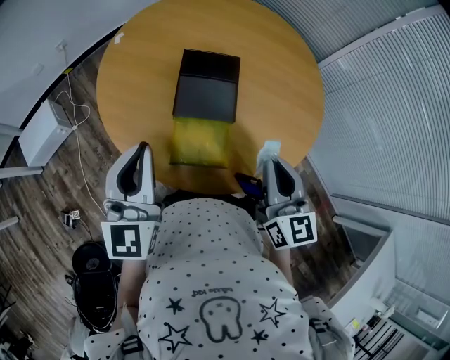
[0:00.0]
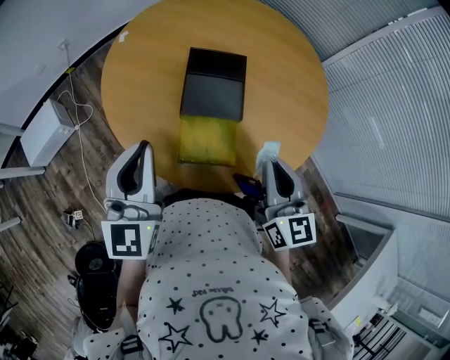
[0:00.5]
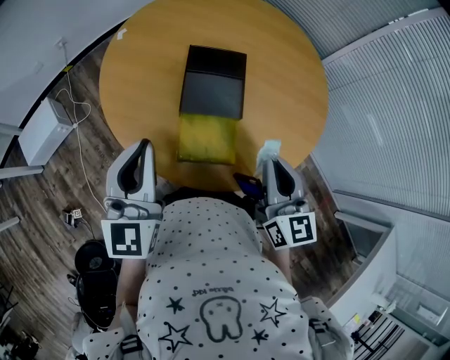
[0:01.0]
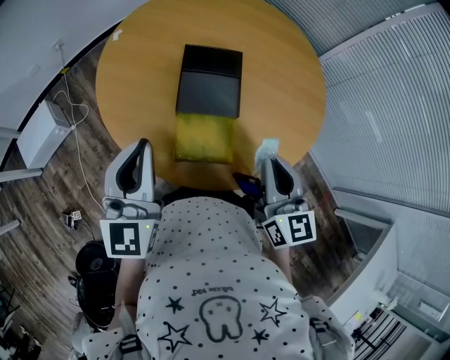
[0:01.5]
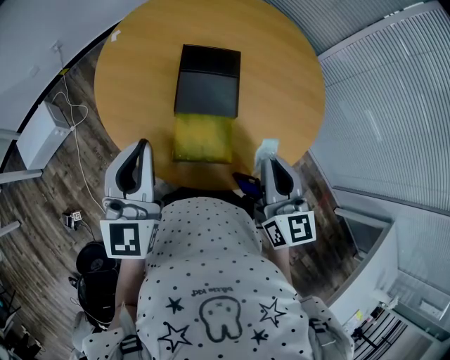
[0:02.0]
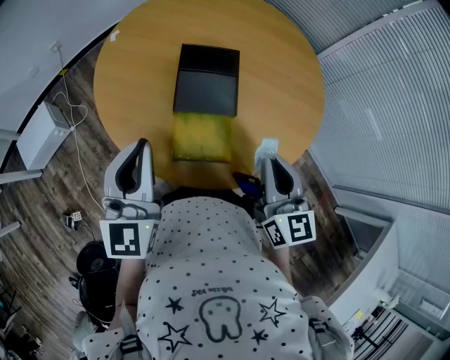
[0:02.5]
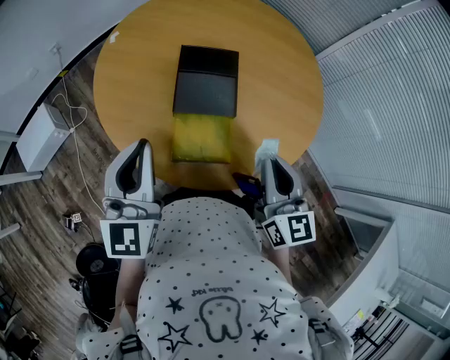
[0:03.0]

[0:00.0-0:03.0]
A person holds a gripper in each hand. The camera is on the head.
0:00.0 to 0:03.0: Both grippers stay about where they are.

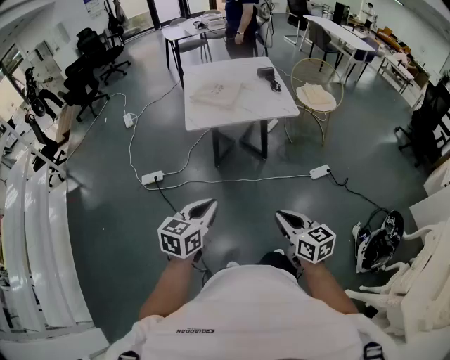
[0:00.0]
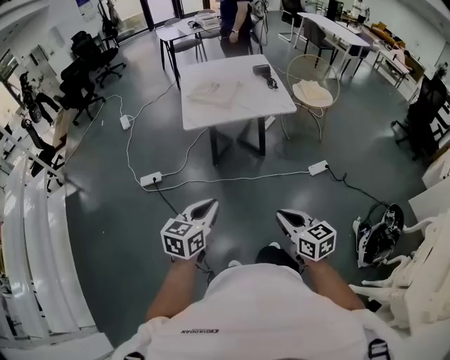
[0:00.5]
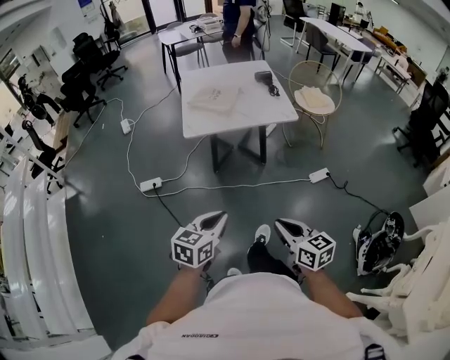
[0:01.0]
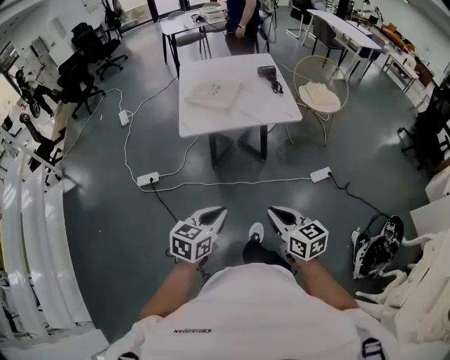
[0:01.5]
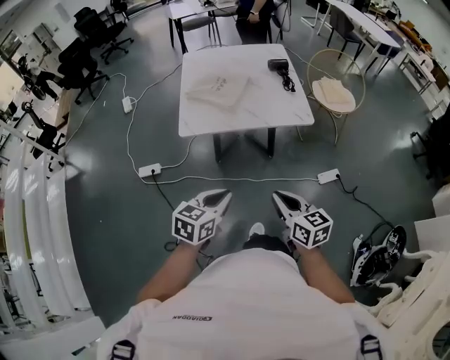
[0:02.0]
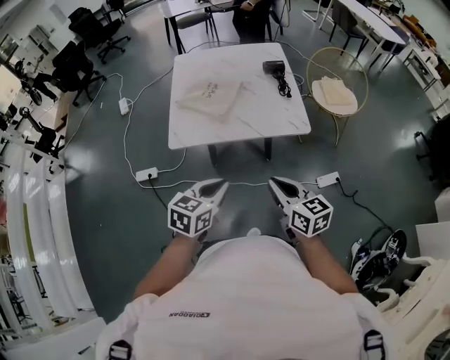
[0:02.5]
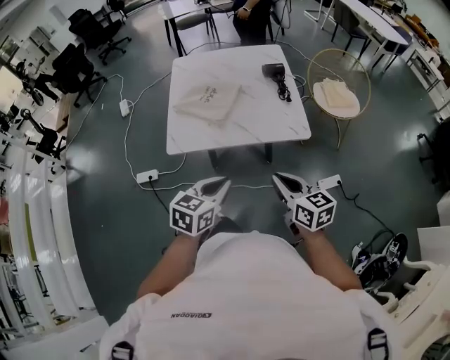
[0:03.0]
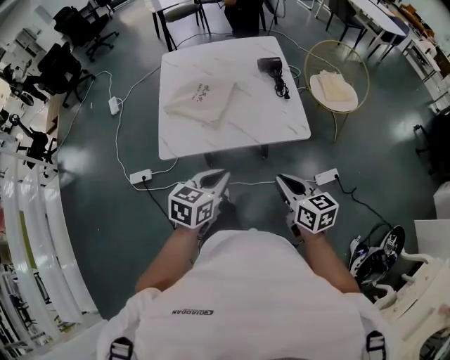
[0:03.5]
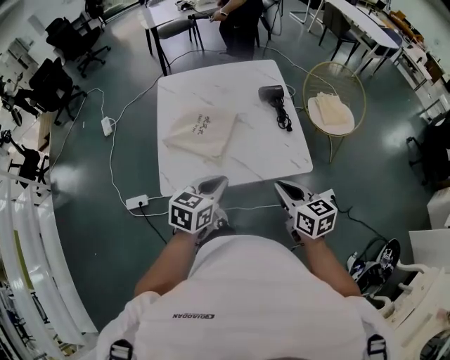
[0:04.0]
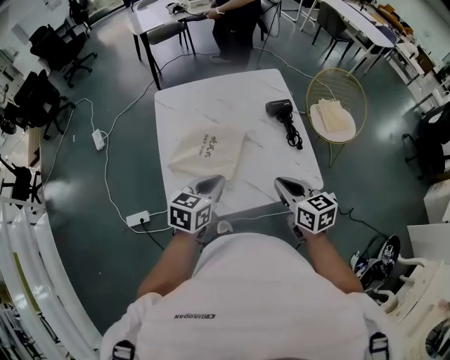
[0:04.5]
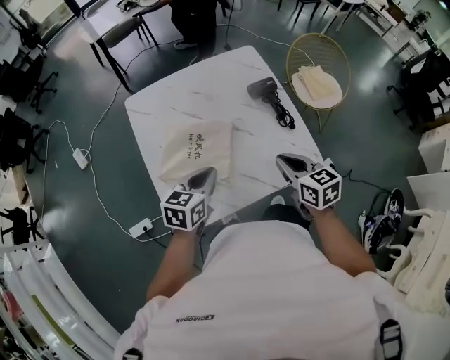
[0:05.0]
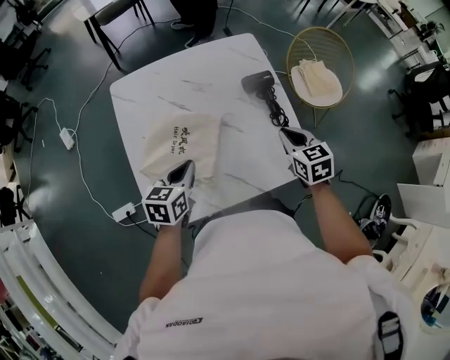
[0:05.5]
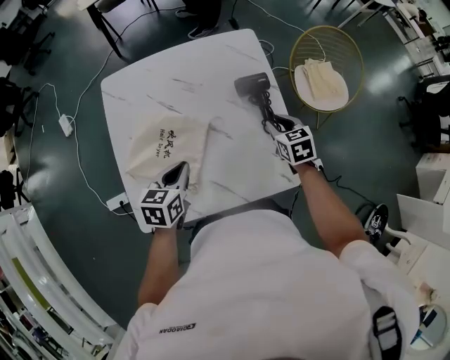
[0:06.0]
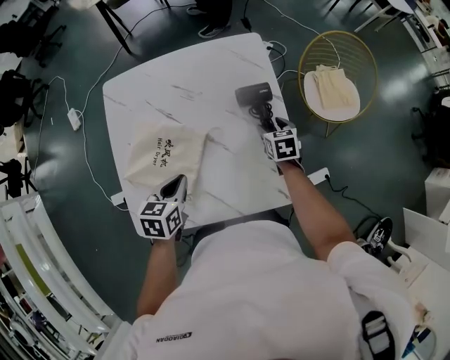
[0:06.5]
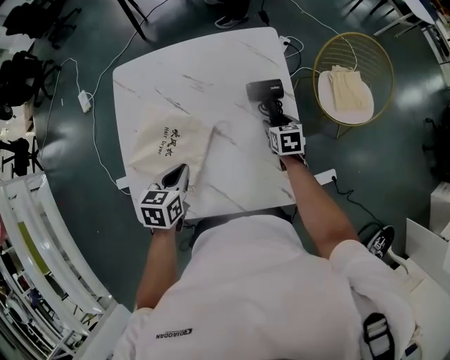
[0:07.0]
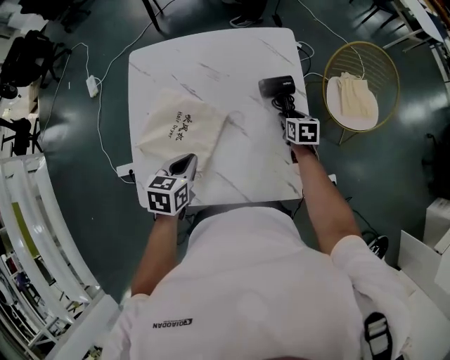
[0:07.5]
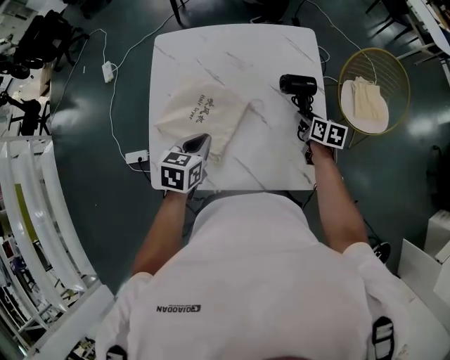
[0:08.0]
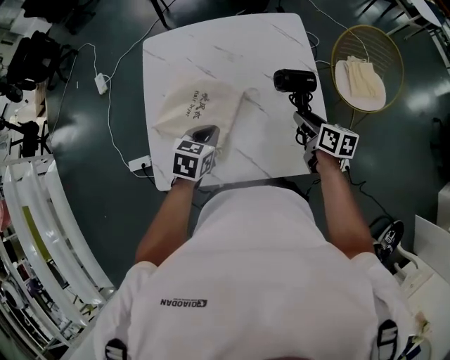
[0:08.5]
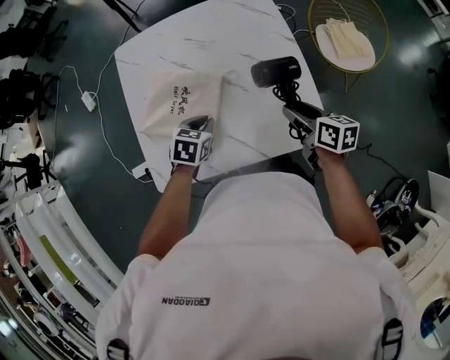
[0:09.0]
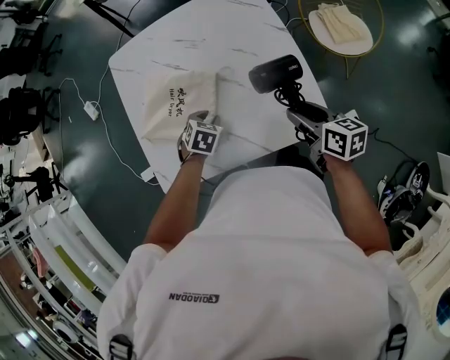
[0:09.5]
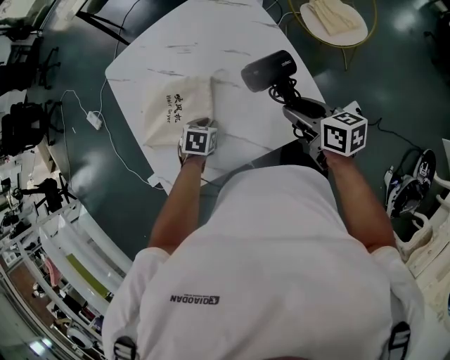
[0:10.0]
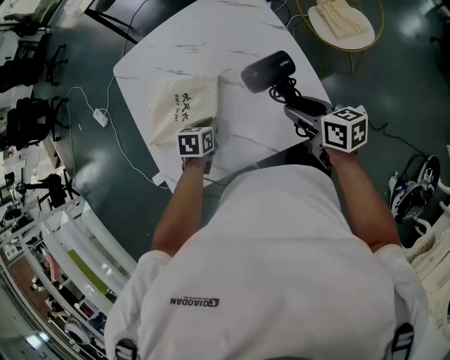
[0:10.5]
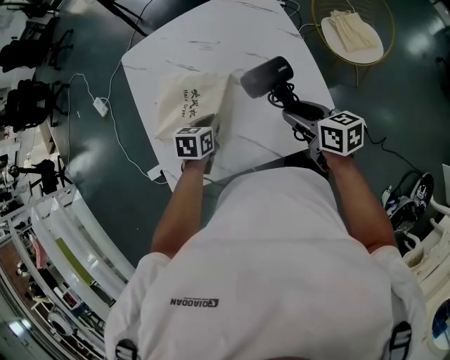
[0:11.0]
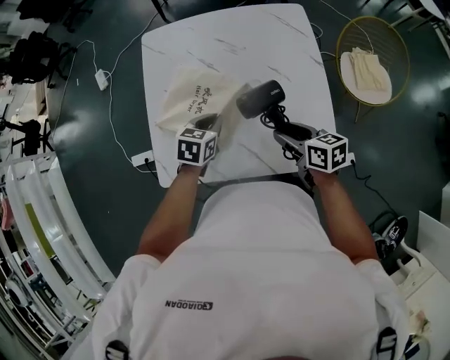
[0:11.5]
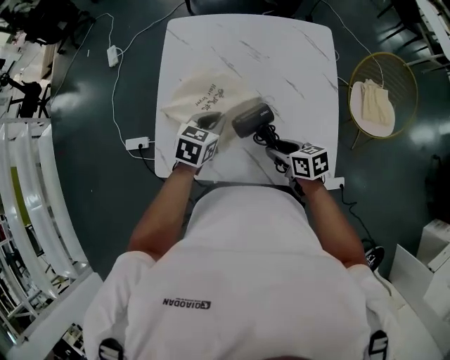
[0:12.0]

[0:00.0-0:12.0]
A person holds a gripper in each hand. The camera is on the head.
0:00.0 to 0:02.0: The two grippers go roughly 25 cm forward.
0:02.0 to 0:04.0: The two grippers go about 35 cm forward.
0:04.0 to 0:06.0: Both grippers travel together forward and downward, roughly 35 cm. The right gripper turns by some 30 degrees.
0:06.0 to 0:08.0: The right gripper is displaced downward by some 5 cm, and rotates about 30 degrees.
0:08.0 to 0:10.0: The right gripper goes some 20 cm backward and upward. The left gripper goes approximately 15 cm downward, and changes its angle by about 30 degrees.
0:10.0 to 0:12.0: The right gripper shifts by some 20 cm, and rotates about 40 degrees. Meanwhile the left gripper heads upward, covering some 10 cm, and rotates some 30 degrees.

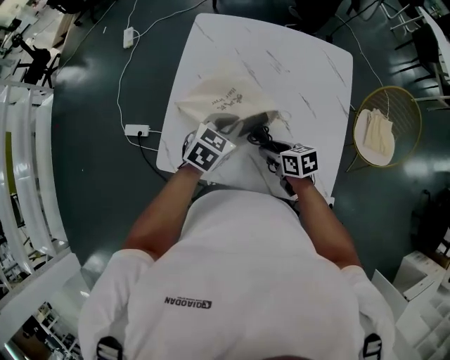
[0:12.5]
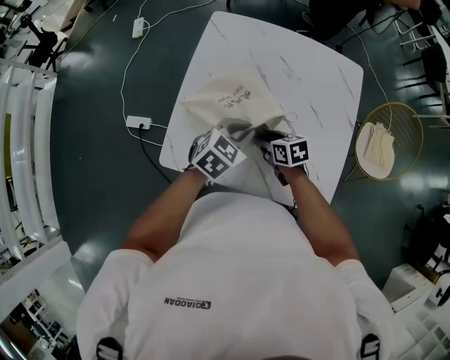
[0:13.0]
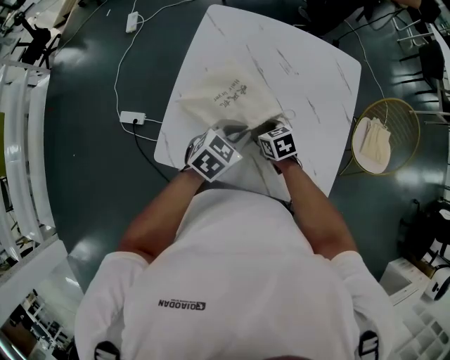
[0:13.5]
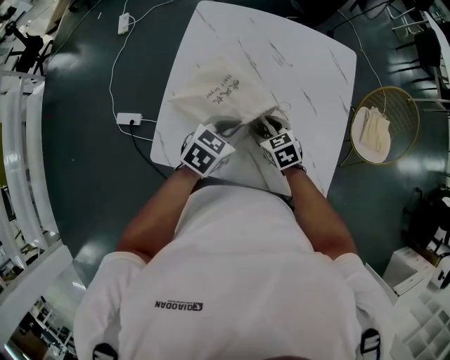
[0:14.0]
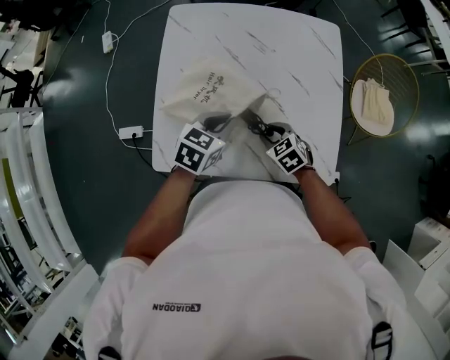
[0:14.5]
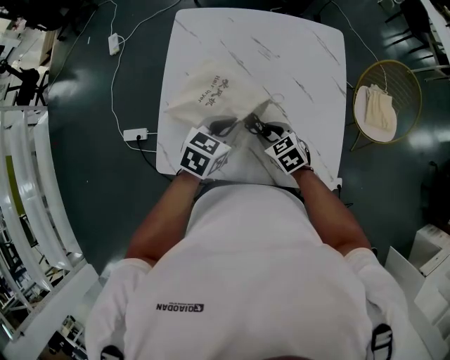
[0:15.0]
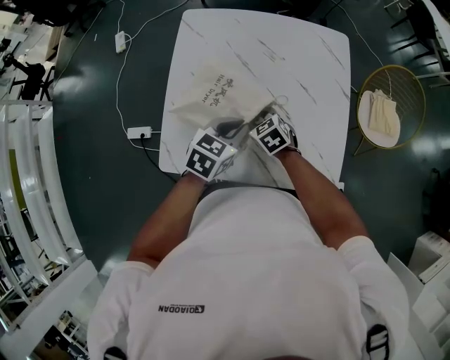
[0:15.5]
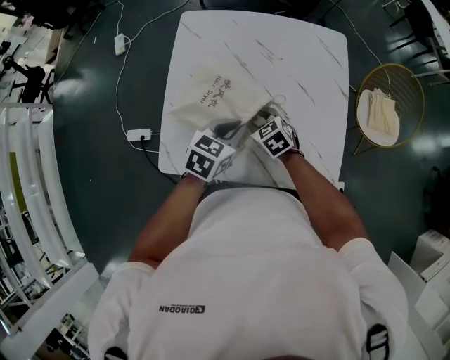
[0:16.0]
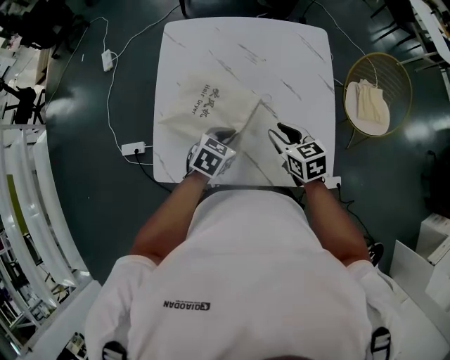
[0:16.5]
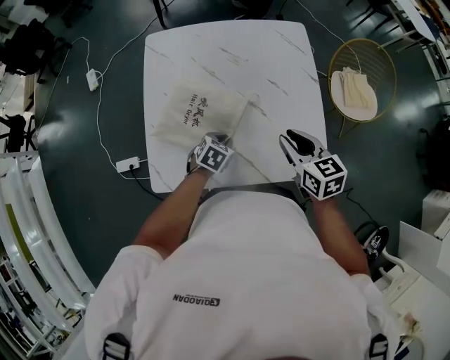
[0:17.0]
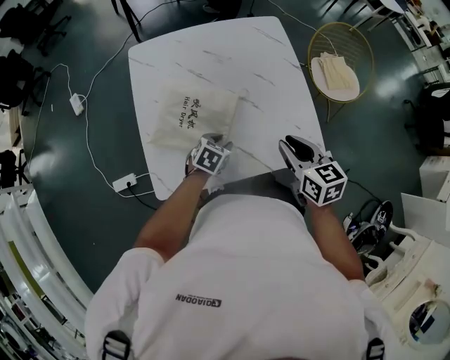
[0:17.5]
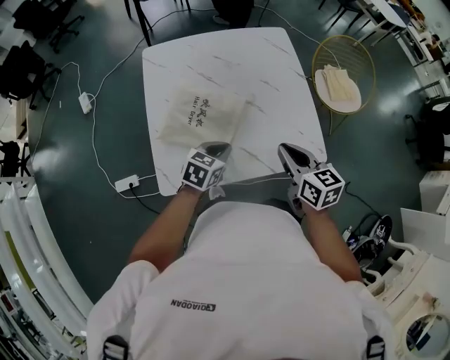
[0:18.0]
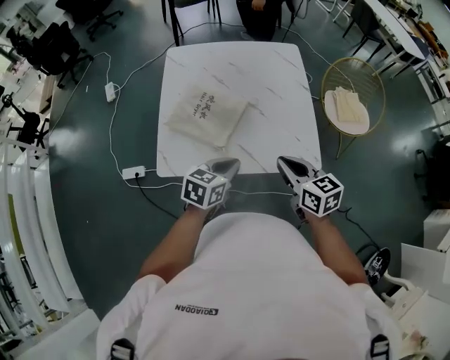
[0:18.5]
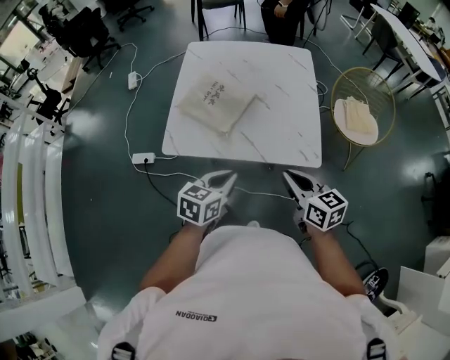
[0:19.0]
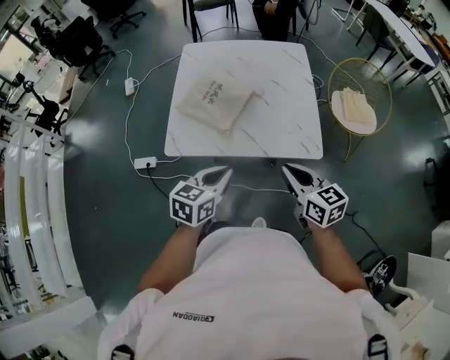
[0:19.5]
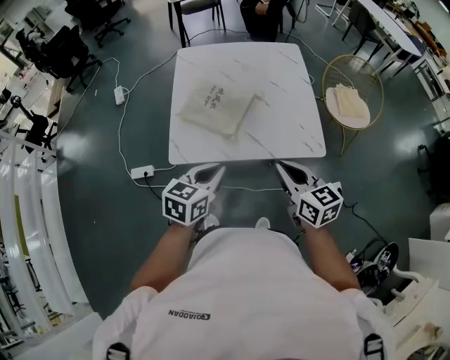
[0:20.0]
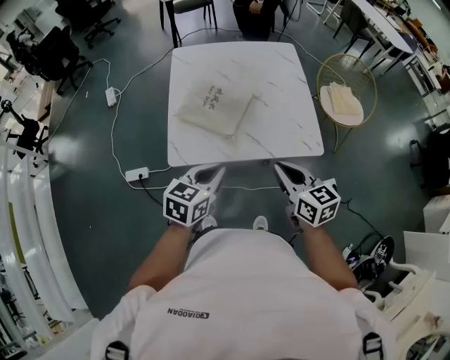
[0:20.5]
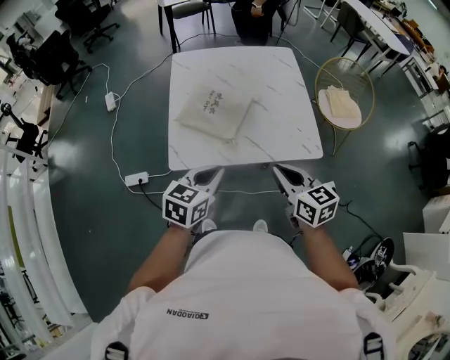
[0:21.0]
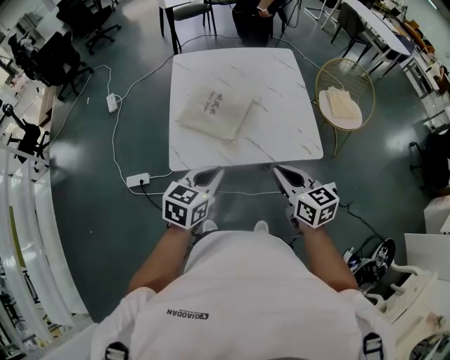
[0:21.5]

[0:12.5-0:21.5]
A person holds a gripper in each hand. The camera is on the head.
0:12.5 to 0:14.5: The right gripper rotates some 40 degrees.
0:14.5 to 0:17.0: The left gripper shifts some 15 cm downward; the right gripper goes some 20 cm upward and to the right, and changes its angle by approximately 40 degrees.
0:17.0 to 0:19.5: The right gripper travels backward by approximately 30 cm, while the left gripper is displaced backward and upward by about 40 cm, rotates some 30 degrees, and opens and closes again.
0:19.5 to 0:21.5: Both grippers move to the left, about 10 cm.

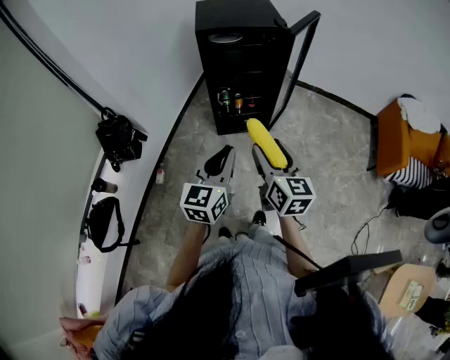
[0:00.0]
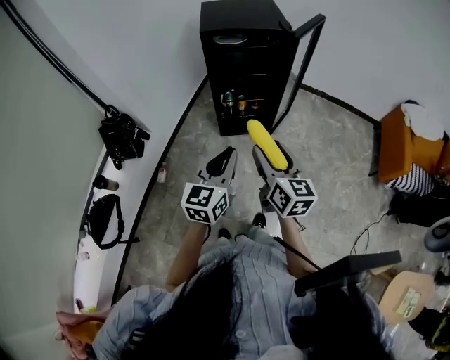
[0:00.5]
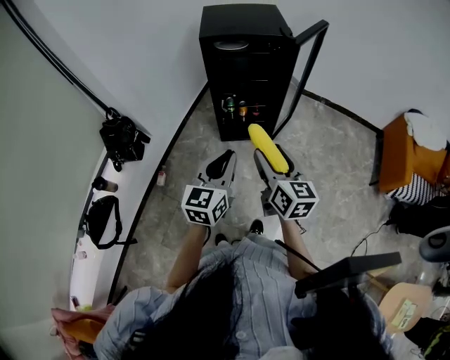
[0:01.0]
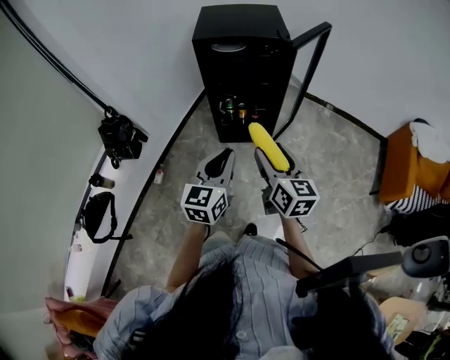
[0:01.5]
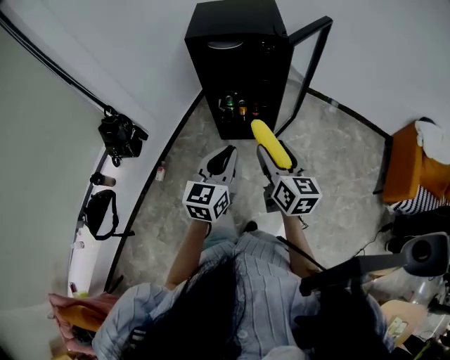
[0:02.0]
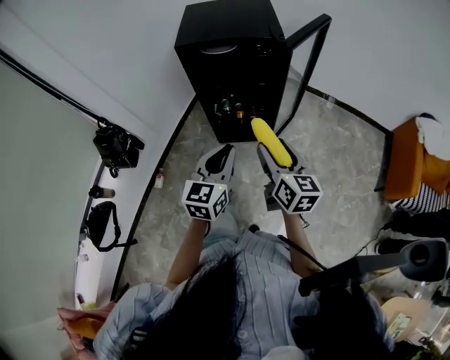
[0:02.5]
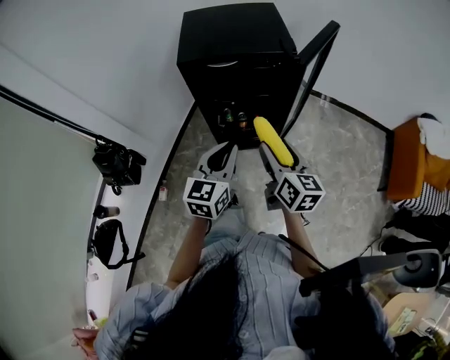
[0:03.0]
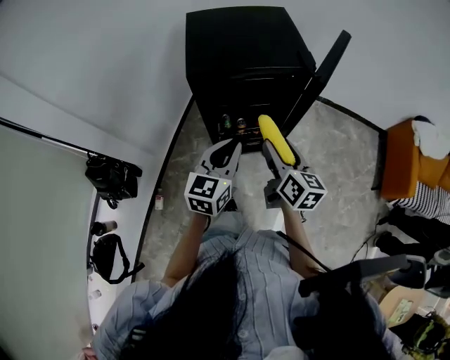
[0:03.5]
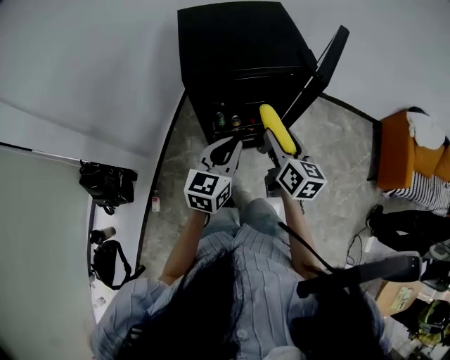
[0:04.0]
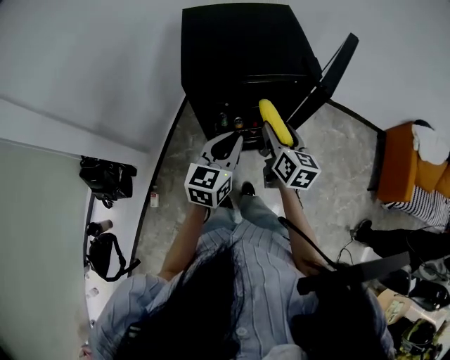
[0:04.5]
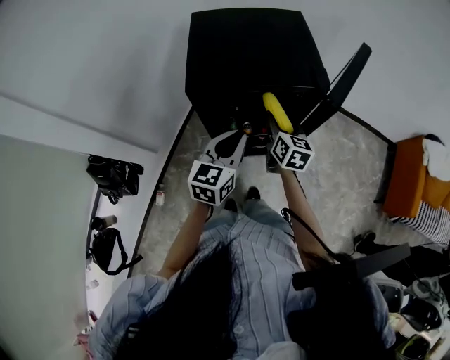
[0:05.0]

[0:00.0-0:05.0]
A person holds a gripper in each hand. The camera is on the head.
0:00.0 to 0:02.5: The two grippers go some 20 cm forward and to the right.
0:02.5 to 0:05.0: Both grippers travel together forward, roughly 30 cm.
